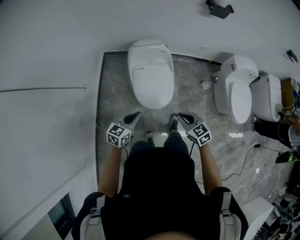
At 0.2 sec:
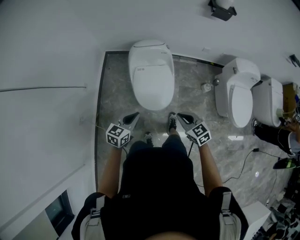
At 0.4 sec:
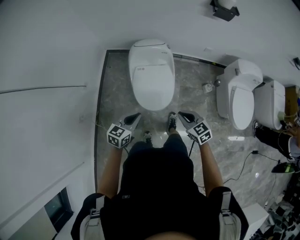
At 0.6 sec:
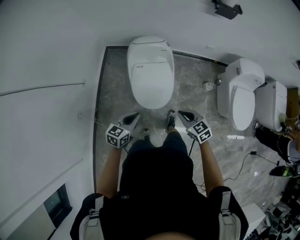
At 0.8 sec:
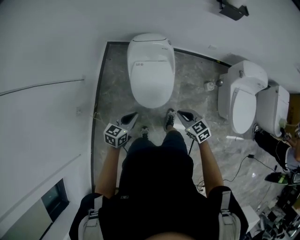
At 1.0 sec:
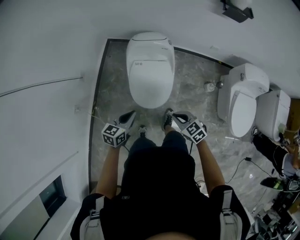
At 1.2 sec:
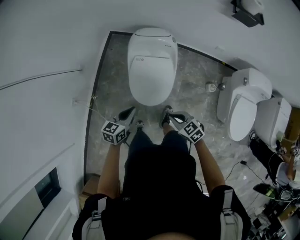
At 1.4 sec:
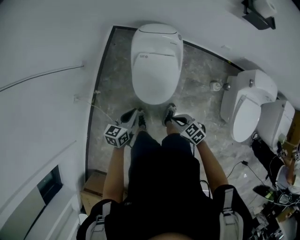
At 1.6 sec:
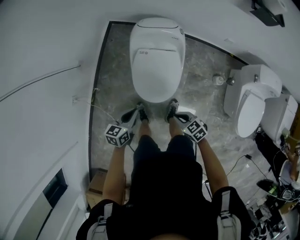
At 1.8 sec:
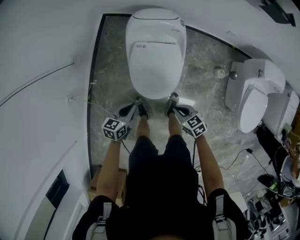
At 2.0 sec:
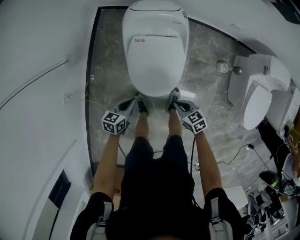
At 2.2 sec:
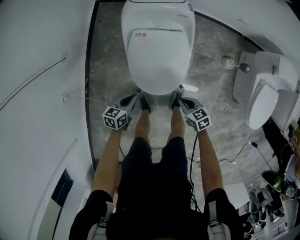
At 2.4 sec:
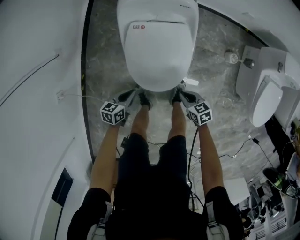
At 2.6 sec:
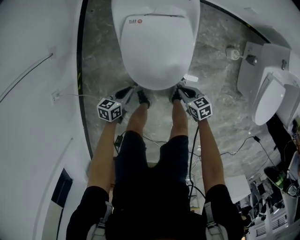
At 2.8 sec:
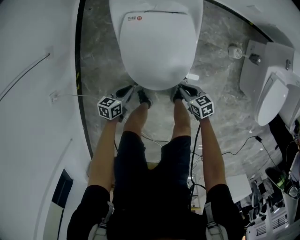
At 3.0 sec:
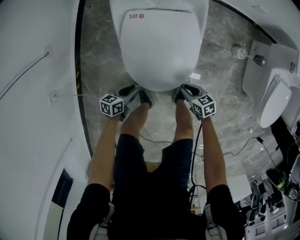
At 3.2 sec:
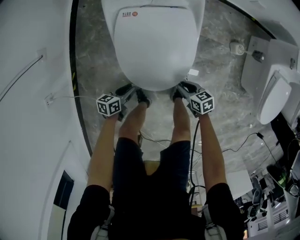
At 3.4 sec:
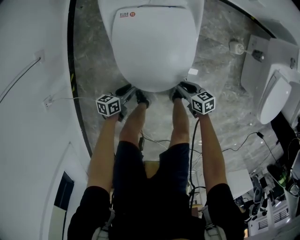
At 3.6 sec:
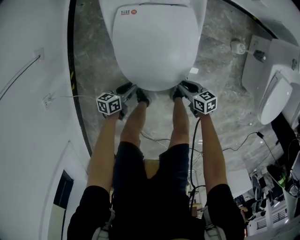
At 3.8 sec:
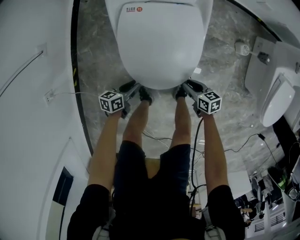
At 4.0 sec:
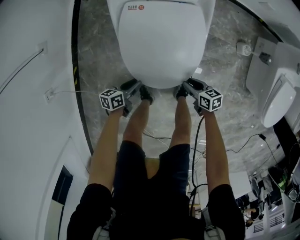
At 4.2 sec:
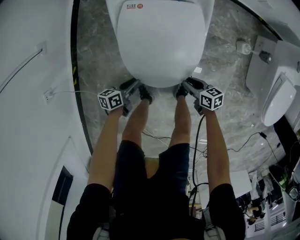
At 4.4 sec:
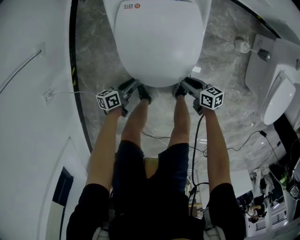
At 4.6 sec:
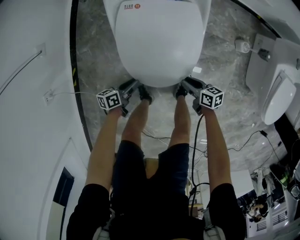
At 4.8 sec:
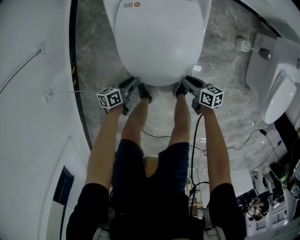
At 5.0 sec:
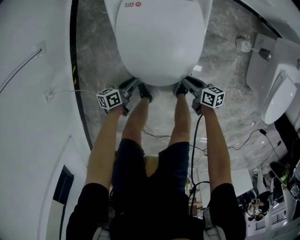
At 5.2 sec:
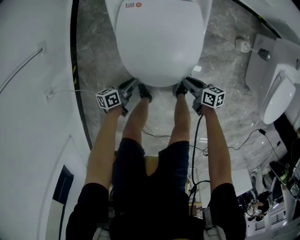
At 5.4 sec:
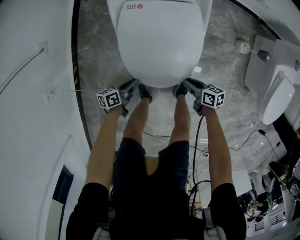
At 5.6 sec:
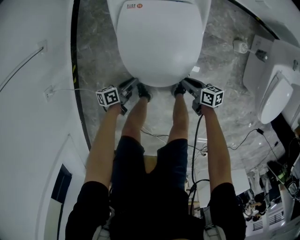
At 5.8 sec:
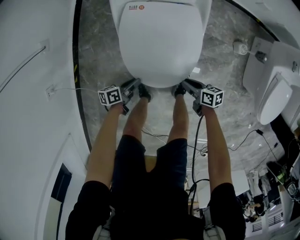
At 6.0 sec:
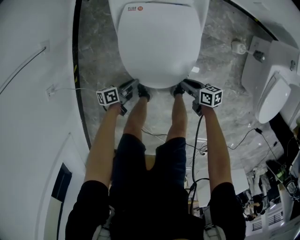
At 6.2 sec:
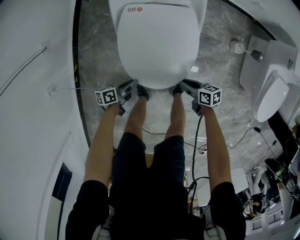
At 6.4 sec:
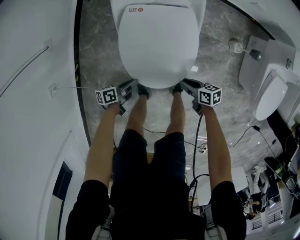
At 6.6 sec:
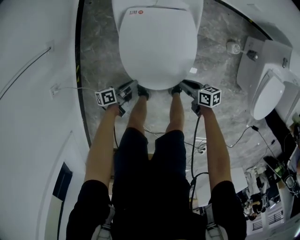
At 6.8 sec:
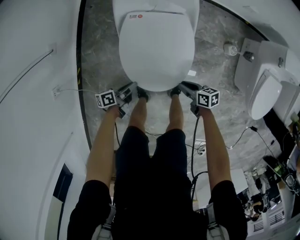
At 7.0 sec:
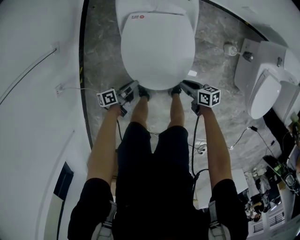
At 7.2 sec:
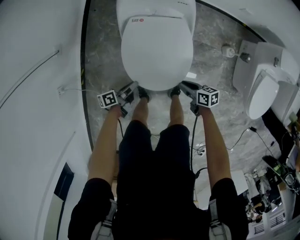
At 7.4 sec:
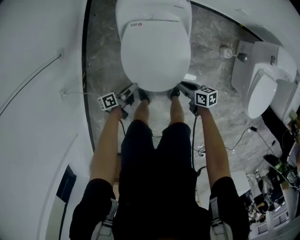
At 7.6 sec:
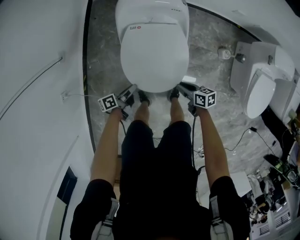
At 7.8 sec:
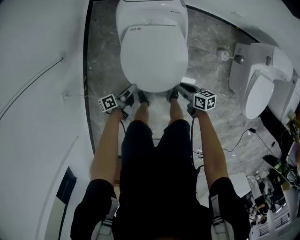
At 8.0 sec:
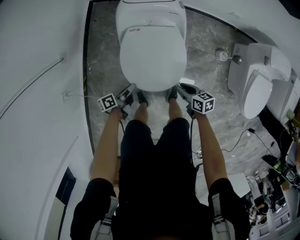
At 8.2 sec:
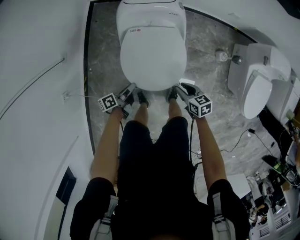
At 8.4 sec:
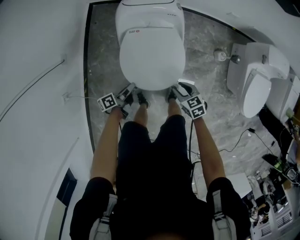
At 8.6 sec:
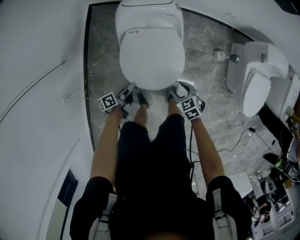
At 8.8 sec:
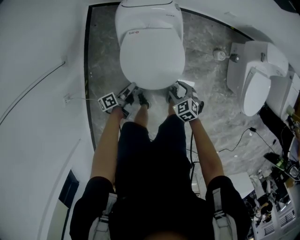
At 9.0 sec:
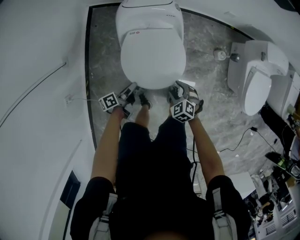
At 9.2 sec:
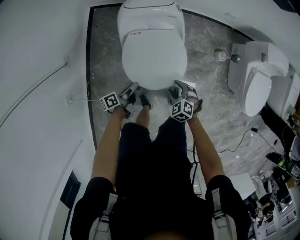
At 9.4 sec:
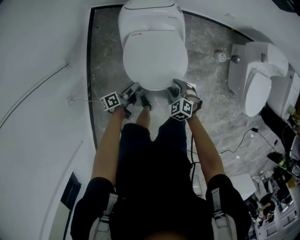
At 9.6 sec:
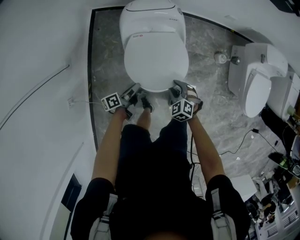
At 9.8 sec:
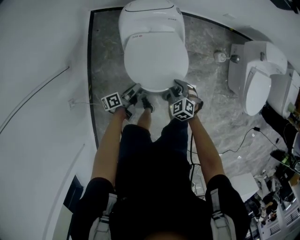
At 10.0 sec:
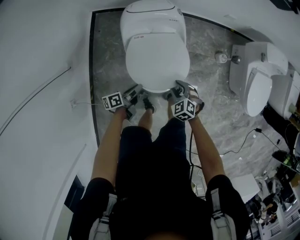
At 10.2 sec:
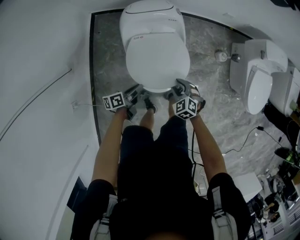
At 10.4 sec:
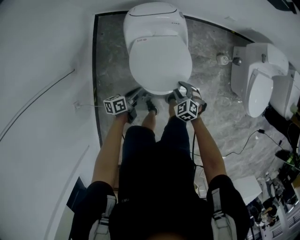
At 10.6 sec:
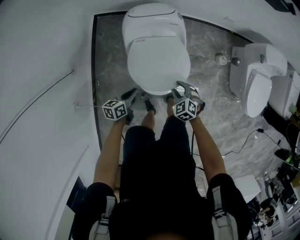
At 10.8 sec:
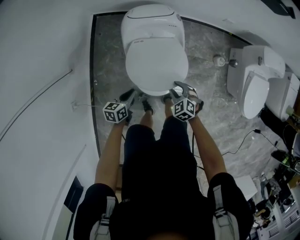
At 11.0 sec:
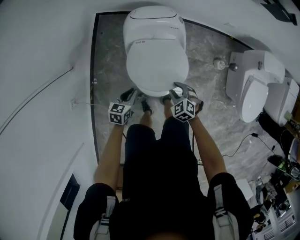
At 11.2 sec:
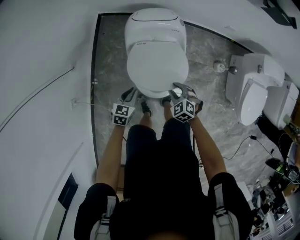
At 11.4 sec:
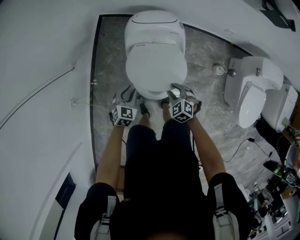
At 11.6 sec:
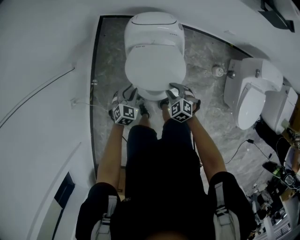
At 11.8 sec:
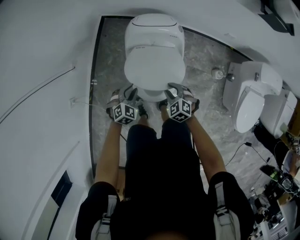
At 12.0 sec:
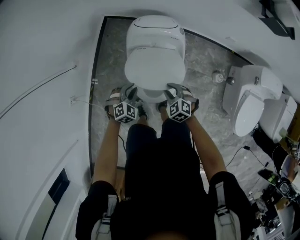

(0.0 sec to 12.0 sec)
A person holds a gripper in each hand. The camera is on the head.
0.0 sec - 1.6 sec: The grippers both shift downward by roughly 15 cm. The left gripper changes its angle by roughly 30 degrees, while the right gripper turns by approximately 30 degrees.
1.6 sec - 3.0 sec: The two grippers go some 35 cm downward. The left gripper changes its angle by about 30 degrees, and opens its fingers. The right gripper rotates roughly 30 degrees.
3.0 sec - 4.4 sec: The right gripper turns by roughly 20 degrees.
4.4 sec - 6.0 sec: There are only small adjustments of the grippers.
6.0 sec - 7.6 sec: Both grippers travel together upward, about 15 cm.
7.6 sec - 9.0 sec: The right gripper shifts some 5 cm upward, rolls counterclockwise, seen from behind, by some 60 degrees, and opens up, while the left gripper shifts by about 5 cm.
9.0 sec - 10.4 sec: The left gripper changes its angle by about 30 degrees.
10.4 sec - 12.0 sec: The left gripper shifts by some 10 cm, and twists about 80 degrees clockwise, seen from behind. The right gripper changes place by some 10 cm.

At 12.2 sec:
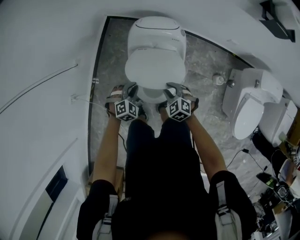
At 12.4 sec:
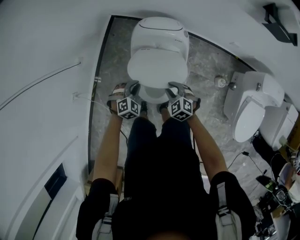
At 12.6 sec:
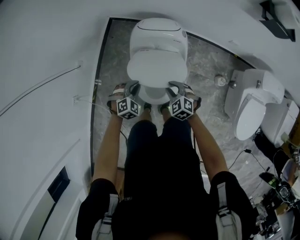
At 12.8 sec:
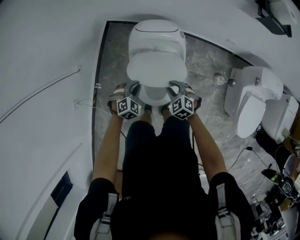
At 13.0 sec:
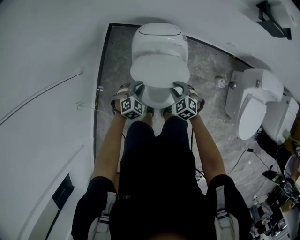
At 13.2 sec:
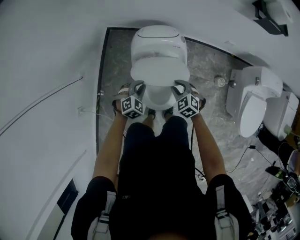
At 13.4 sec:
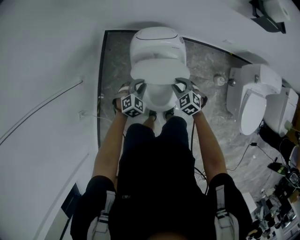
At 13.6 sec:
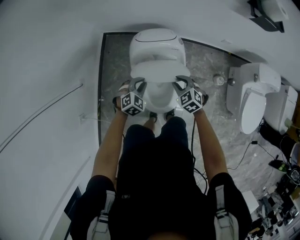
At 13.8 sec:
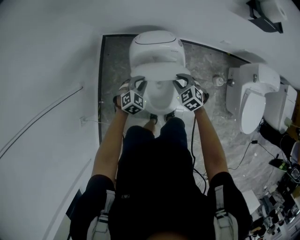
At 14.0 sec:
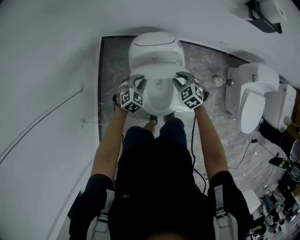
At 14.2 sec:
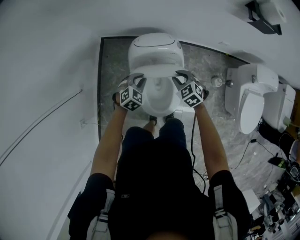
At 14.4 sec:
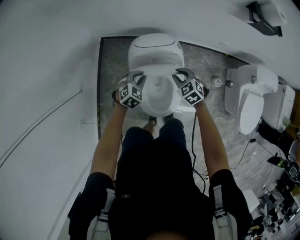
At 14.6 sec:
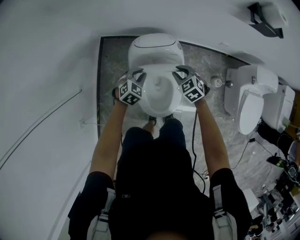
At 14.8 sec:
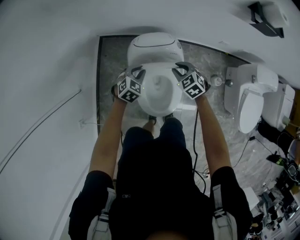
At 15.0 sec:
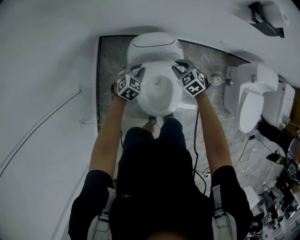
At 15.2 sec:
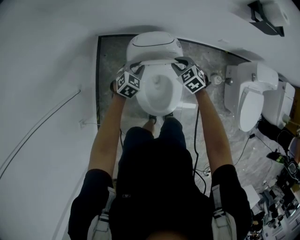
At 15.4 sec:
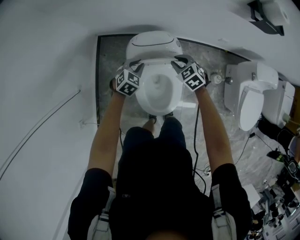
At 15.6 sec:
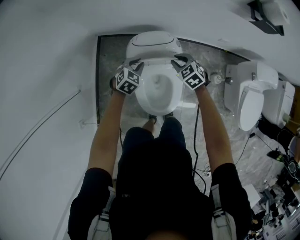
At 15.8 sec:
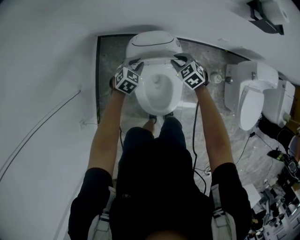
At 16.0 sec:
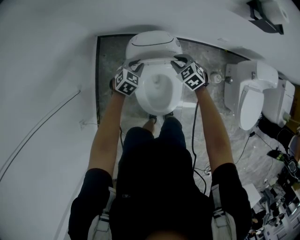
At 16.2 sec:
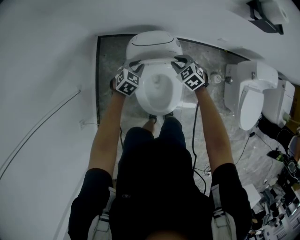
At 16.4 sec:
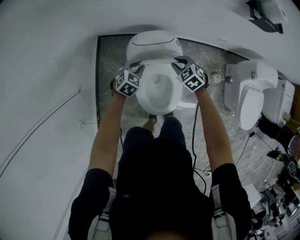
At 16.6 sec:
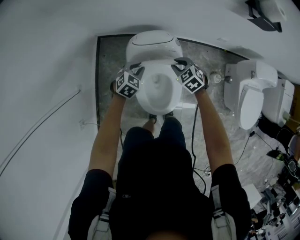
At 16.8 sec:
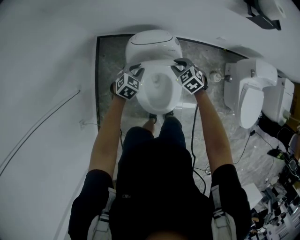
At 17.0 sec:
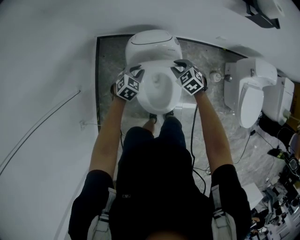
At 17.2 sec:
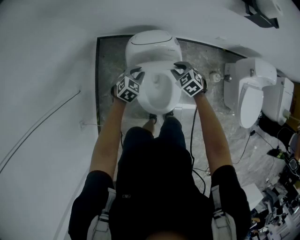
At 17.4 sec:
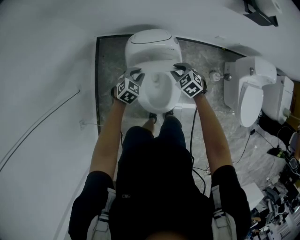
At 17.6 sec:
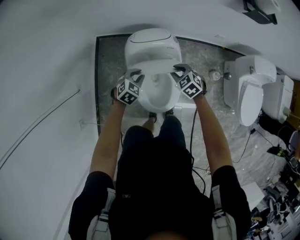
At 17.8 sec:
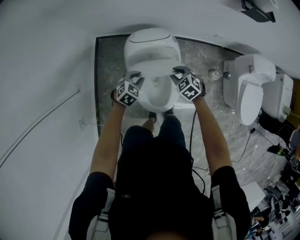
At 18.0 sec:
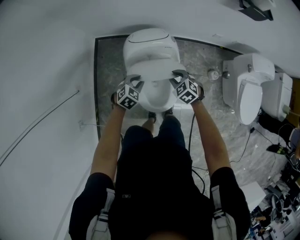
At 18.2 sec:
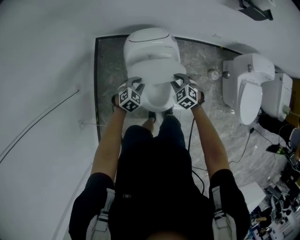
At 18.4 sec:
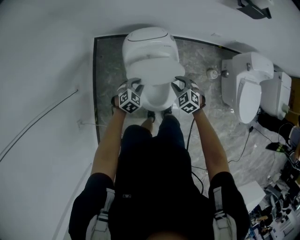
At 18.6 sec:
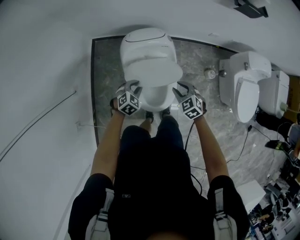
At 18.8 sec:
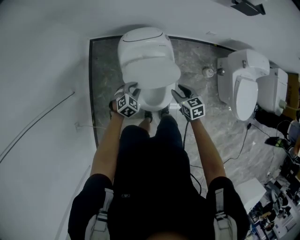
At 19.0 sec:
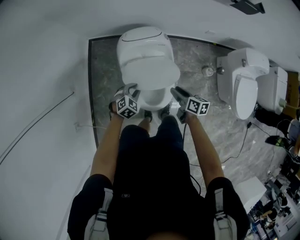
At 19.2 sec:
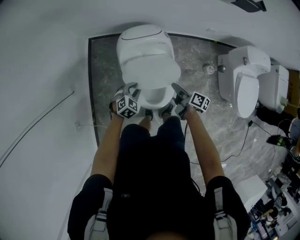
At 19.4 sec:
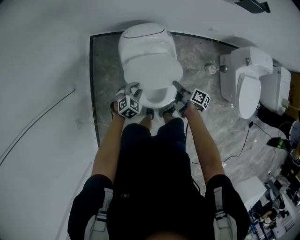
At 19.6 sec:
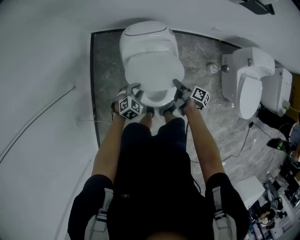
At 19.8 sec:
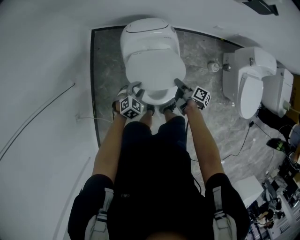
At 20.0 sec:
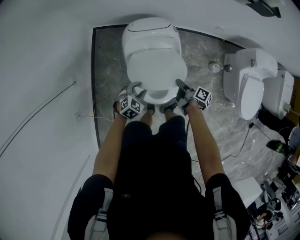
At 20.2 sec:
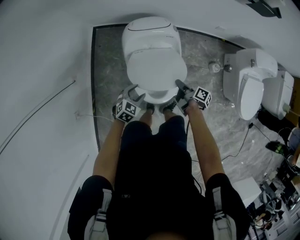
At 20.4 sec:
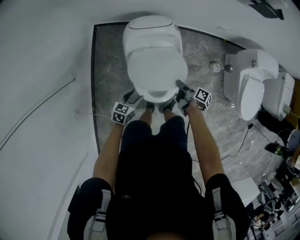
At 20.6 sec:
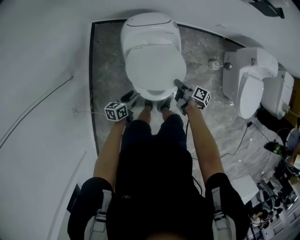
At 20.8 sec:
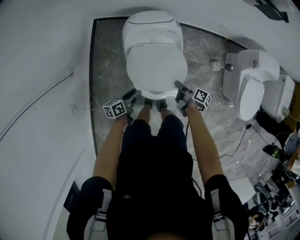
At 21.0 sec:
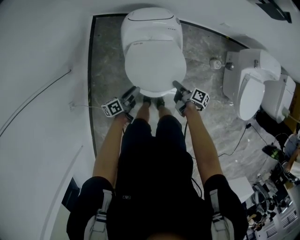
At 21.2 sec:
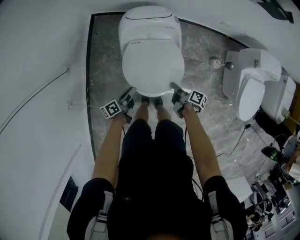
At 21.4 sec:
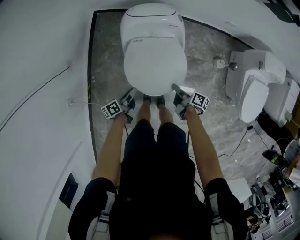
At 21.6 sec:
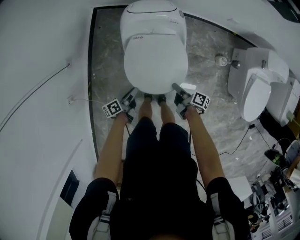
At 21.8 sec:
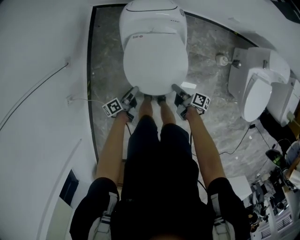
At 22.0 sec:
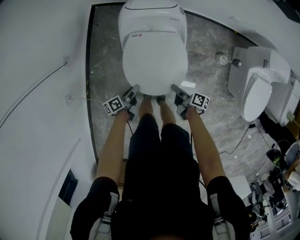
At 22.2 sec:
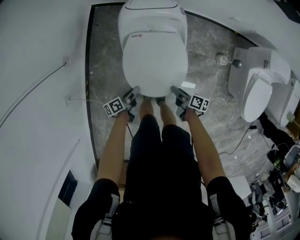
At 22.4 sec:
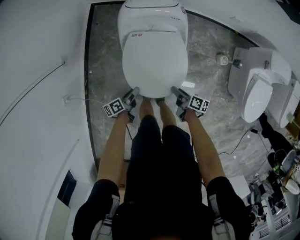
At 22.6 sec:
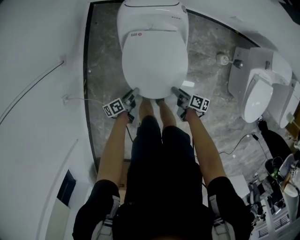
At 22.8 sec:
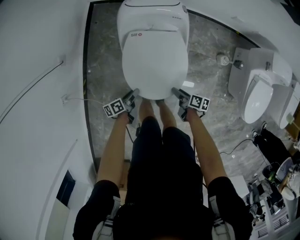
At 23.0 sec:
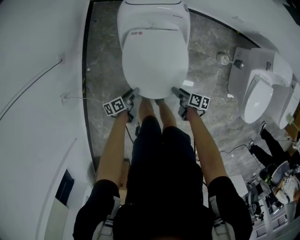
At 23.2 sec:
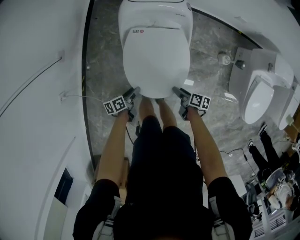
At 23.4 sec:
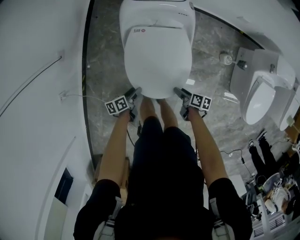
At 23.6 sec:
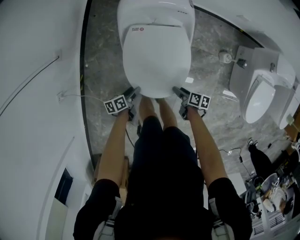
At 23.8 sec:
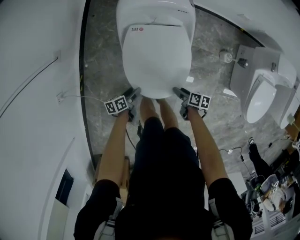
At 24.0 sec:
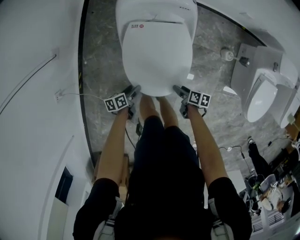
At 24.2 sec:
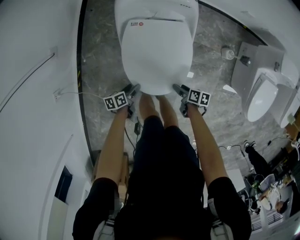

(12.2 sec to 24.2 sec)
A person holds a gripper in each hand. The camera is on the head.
12.2 sec - 13.8 sec: The grippers both shift forward by about 10 cm.
13.8 sec - 15.2 sec: Both grippers travel together forward, some 10 cm.
15.2 sec - 16.6 sec: There are only small adjustments of the grippers.
16.6 sec - 18.2 sec: The two grippers go about 10 cm backward.
18.2 sec - 19.8 sec: The right gripper shifts about 5 cm to the right and downward, and rotates around the line of its fingers by some 110 degrees, clockwise from behind; the left gripper goes approximately 5 cm backward.
19.8 sec - 21.2 sec: The grippers both shift backward by roughly 5 cm. The left gripper rotates around the line of its fingers by some 100 degrees, counterclockwise from behind.
21.2 sec - 22.6 sec: The right gripper travels downward and backward by approximately 10 cm; the left gripper heads downward, covering some 10 cm.
22.6 sec - 24.2 sec: The two grippers go about 10 cm downward. The left gripper opens up; the right gripper rotates some 20 degrees, and opens its fingers.
